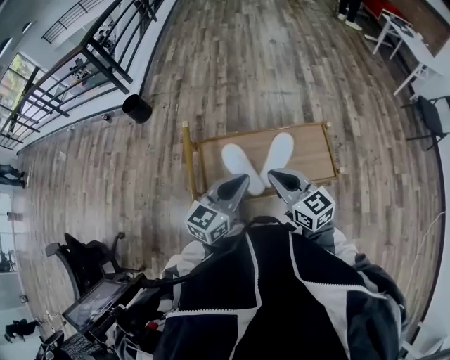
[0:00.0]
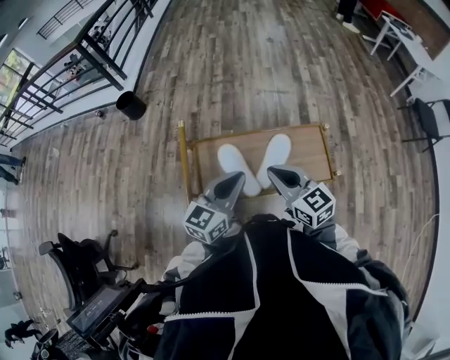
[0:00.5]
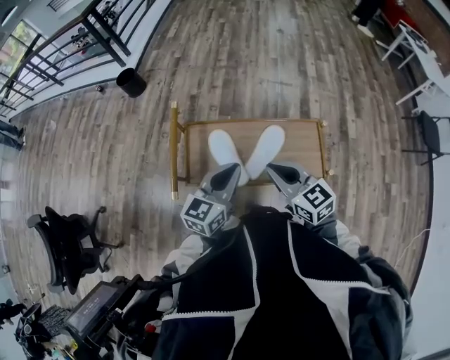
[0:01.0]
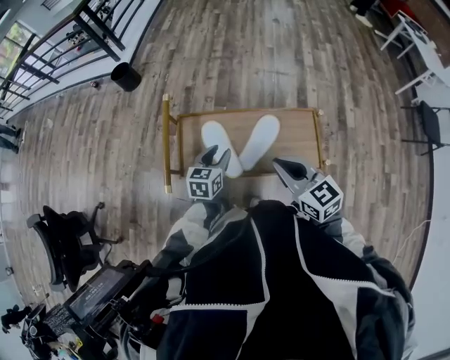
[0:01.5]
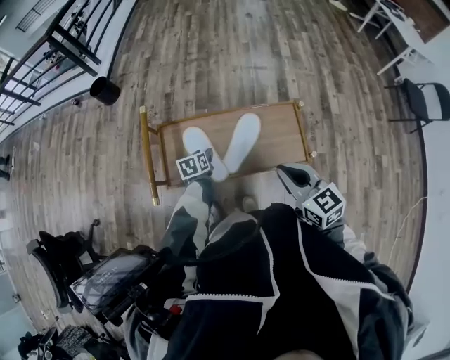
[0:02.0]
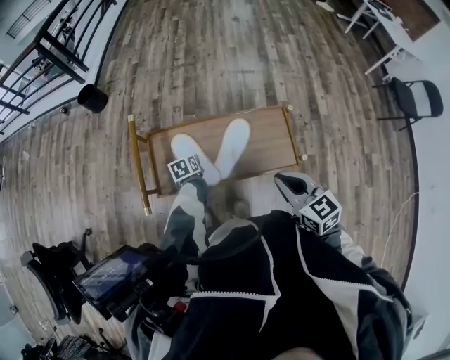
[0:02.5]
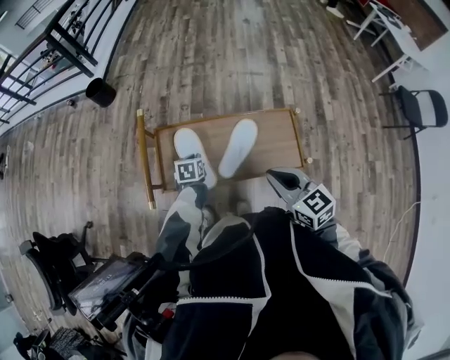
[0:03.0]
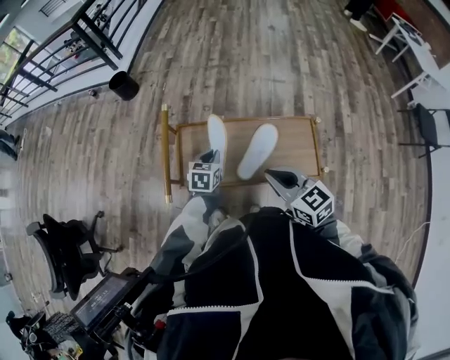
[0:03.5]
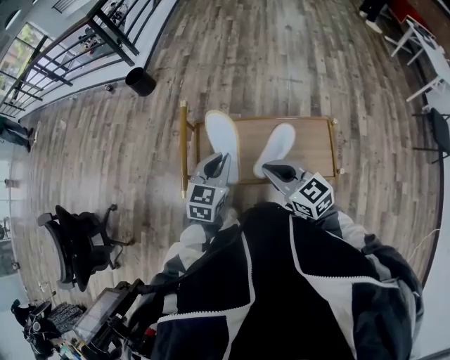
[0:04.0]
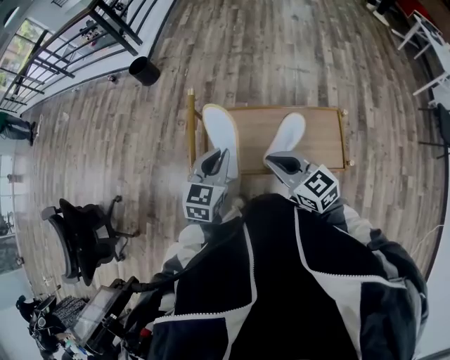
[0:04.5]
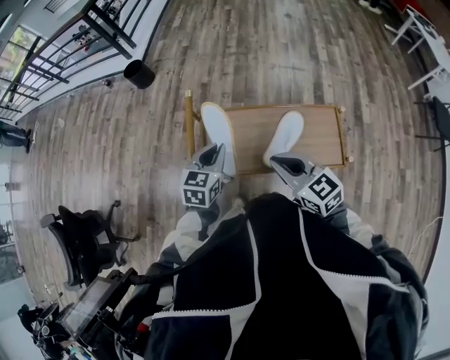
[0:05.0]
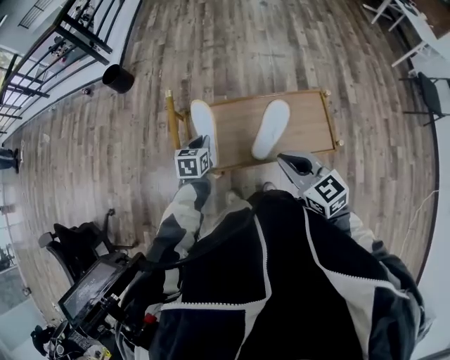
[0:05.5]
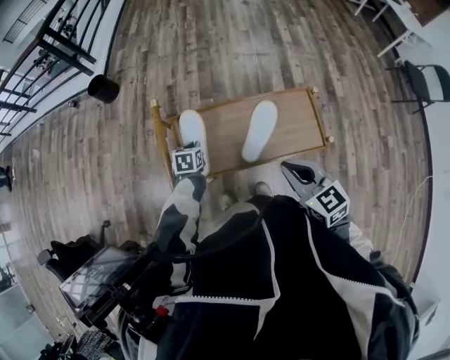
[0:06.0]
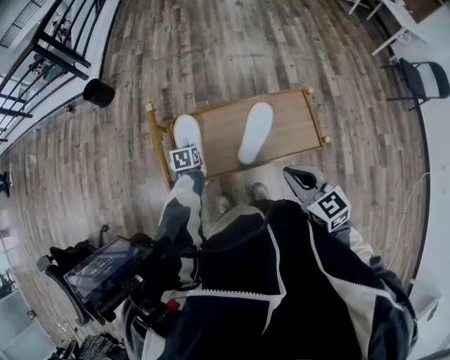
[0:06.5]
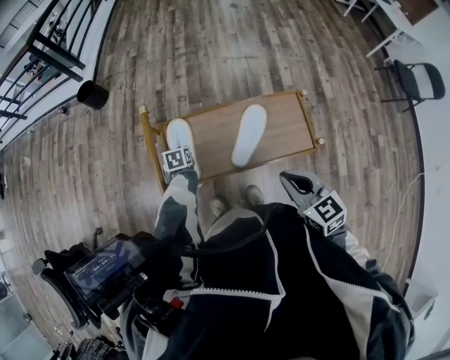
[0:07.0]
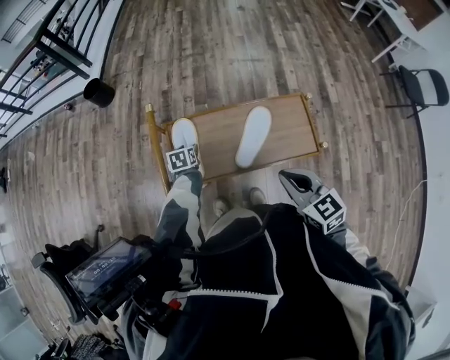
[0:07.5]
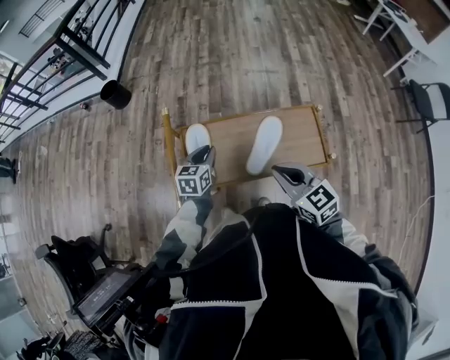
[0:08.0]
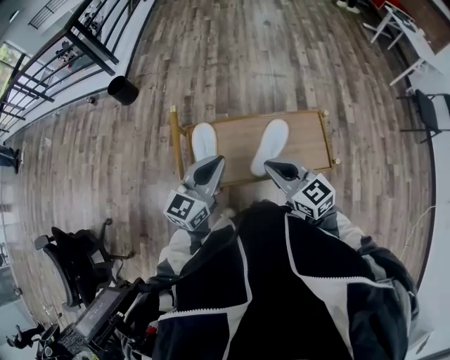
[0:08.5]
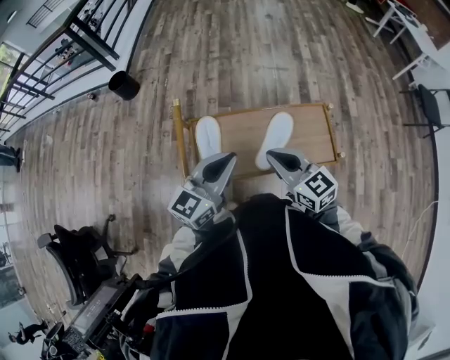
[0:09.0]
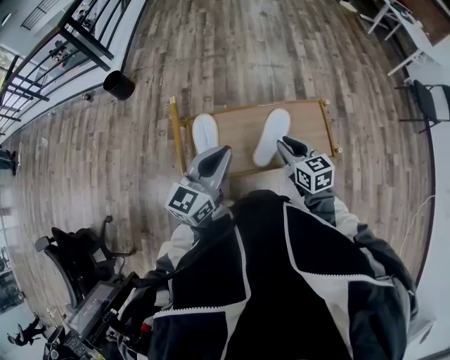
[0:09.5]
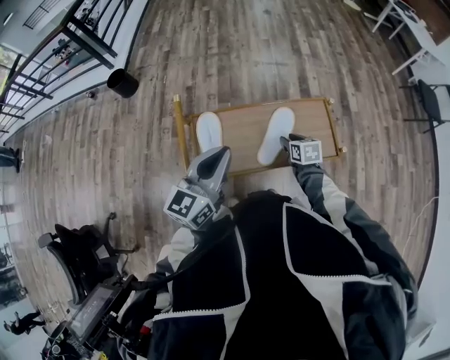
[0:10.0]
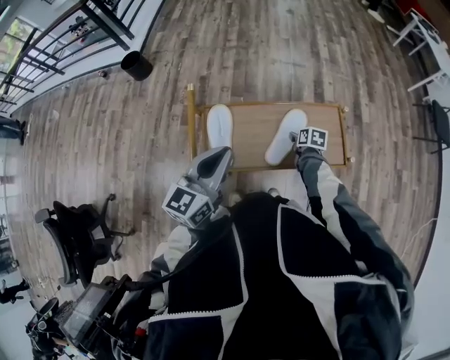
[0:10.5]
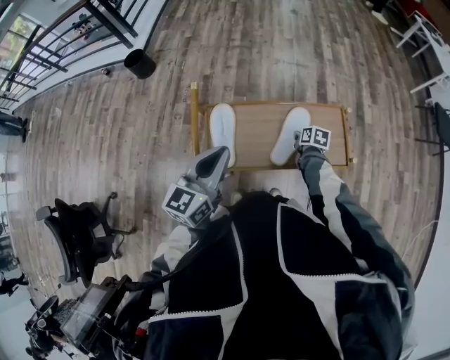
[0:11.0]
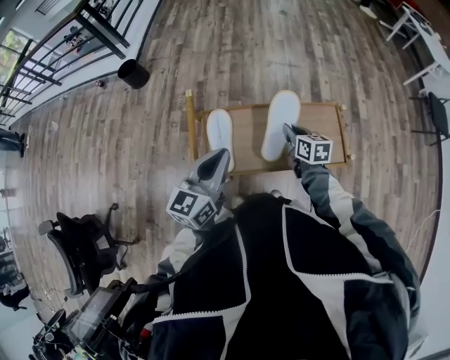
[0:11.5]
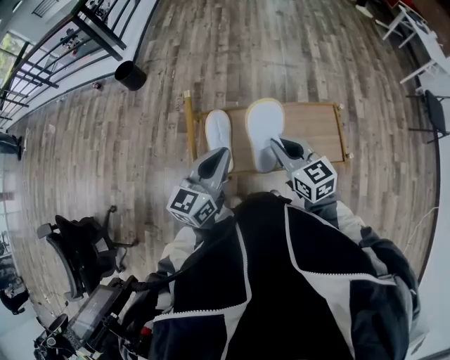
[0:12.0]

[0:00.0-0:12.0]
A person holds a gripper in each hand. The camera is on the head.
0:00.0 to 0:02.0: The right gripper travels to the right by about 15 cm. The left gripper is displaced downward by some 30 cm, tips its fingers downward by approximately 40 degrees, and opens its fingers.
0:02.0 to 0:04.0: The left gripper goes about 25 cm upward, rotates approximately 40 degrees, and closes its fingers. Meanwhile the right gripper shifts some 15 cm to the left.
0:04.0 to 0:06.0: The right gripper goes approximately 5 cm backward, and changes its angle by some 20 degrees; the left gripper is displaced downward by approximately 20 cm, and rotates approximately 30 degrees.
0:06.0 to 0:08.0: The left gripper moves upward, about 10 cm, rotates about 20 degrees, and opens, then closes again.
0:08.0 to 0:10.0: The left gripper travels upward and backward by approximately 20 cm, and tips its fingers upward by about 30 degrees, while the right gripper moves downward and forward, about 20 cm, rotates some 40 degrees, and opens.
0:10.0 to 0:12.0: The left gripper changes place by approximately 5 cm; the right gripper is displaced upward and to the left by approximately 25 cm, turns by about 40 degrees, and closes up.

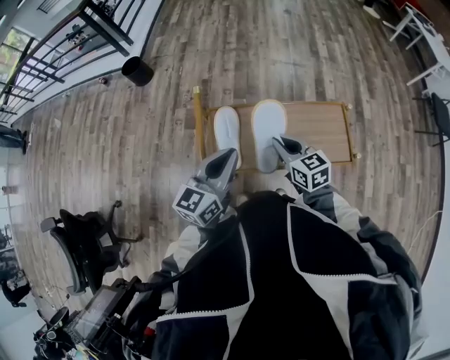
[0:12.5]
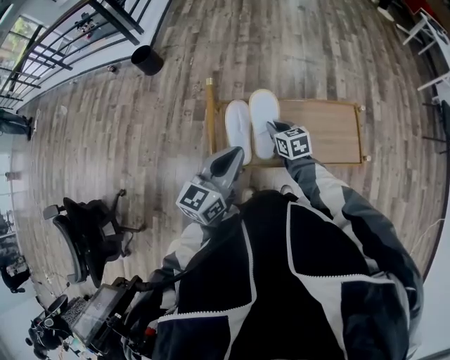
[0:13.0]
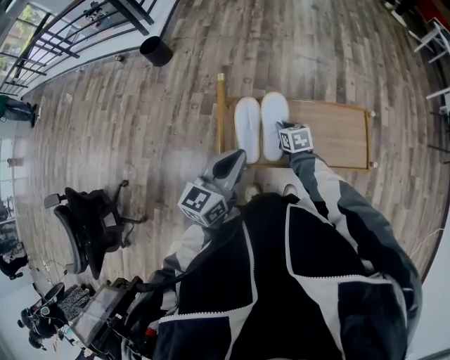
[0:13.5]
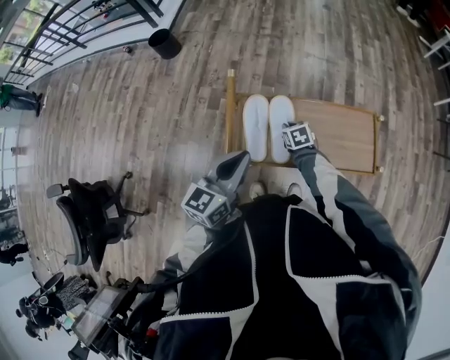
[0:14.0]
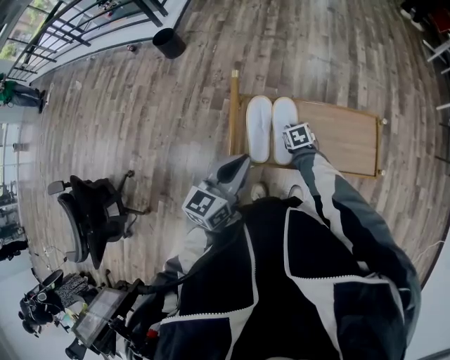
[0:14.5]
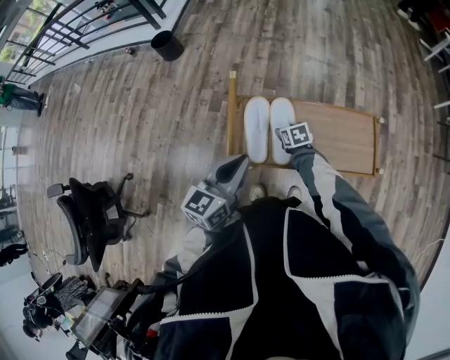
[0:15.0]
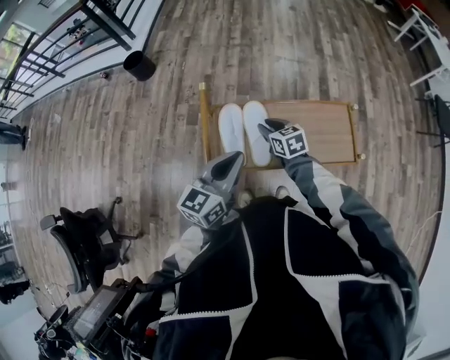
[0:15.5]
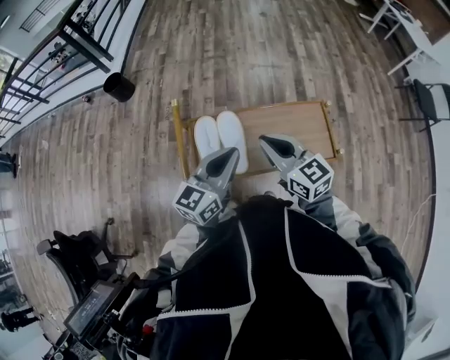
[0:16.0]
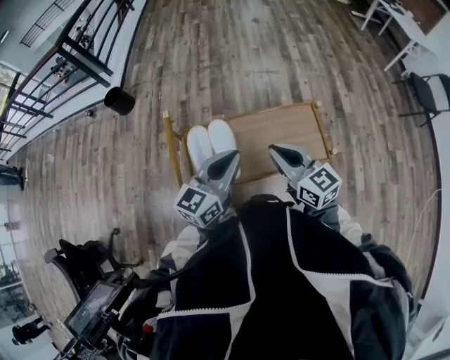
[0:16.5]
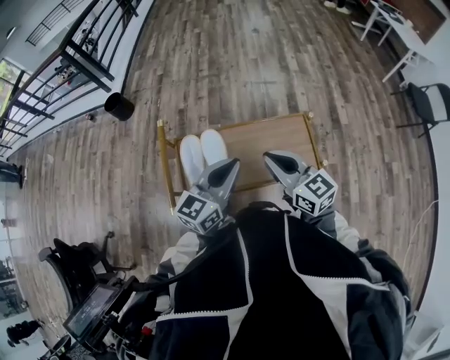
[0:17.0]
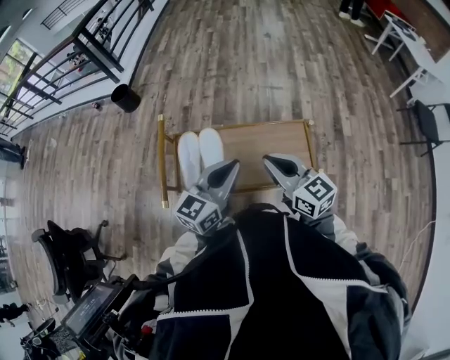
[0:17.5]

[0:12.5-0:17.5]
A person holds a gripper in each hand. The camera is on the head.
0:12.5 to 0:15.0: The right gripper shifts some 20 cm downward, tips its fingers downward by roughly 30 degrees, and opens. Meanwhile the left gripper travels to the left by some 5 cm.
0:15.0 to 0:17.5: The left gripper heads to the right, covering about 25 cm. The right gripper is displaced upward and to the right by about 40 cm, tips its fingers upward by about 50 degrees, and closes its fingers.

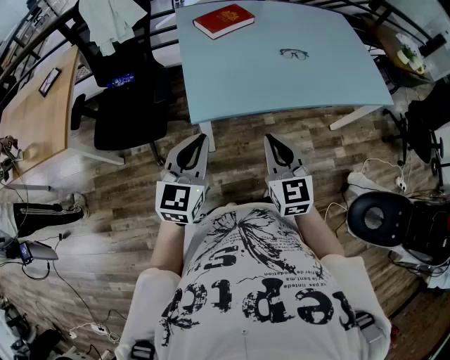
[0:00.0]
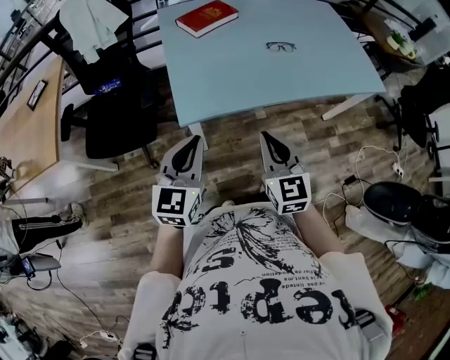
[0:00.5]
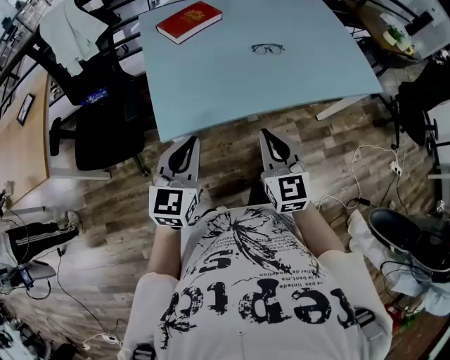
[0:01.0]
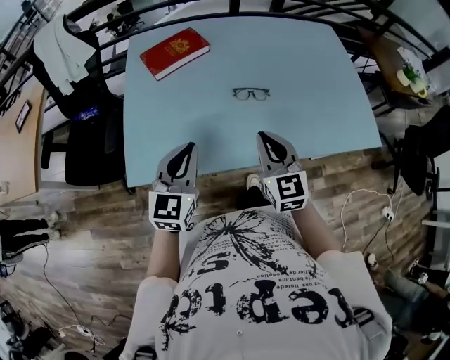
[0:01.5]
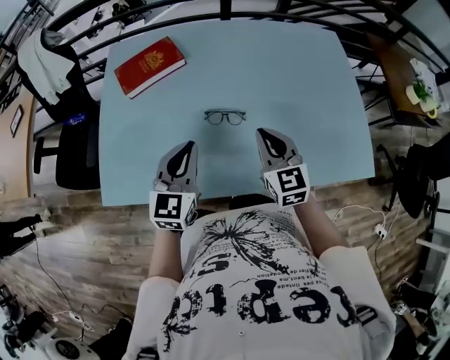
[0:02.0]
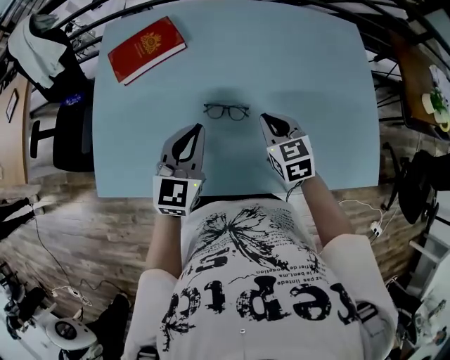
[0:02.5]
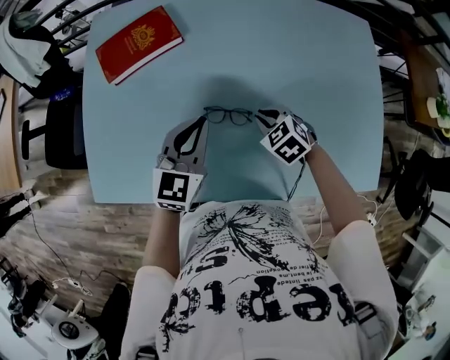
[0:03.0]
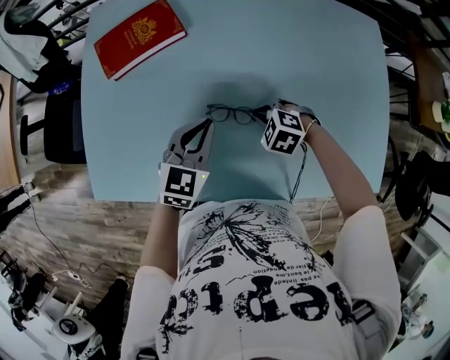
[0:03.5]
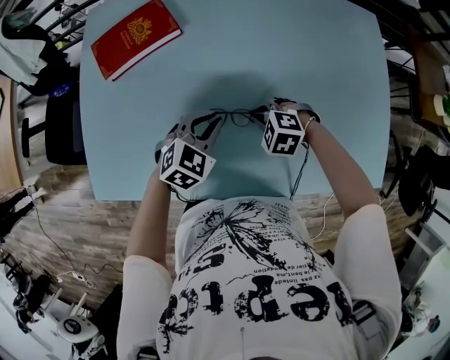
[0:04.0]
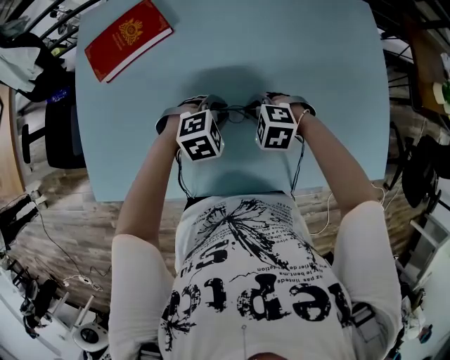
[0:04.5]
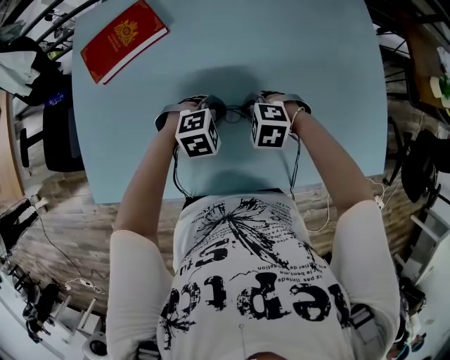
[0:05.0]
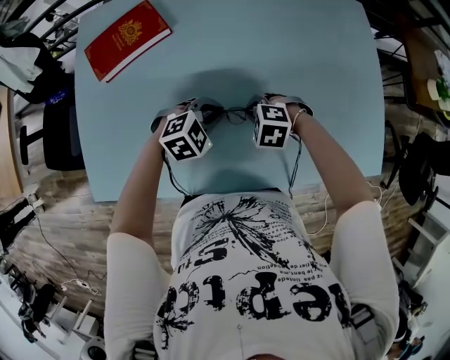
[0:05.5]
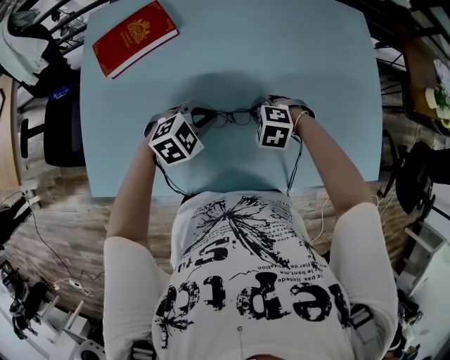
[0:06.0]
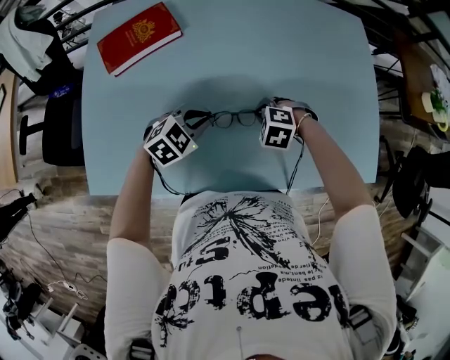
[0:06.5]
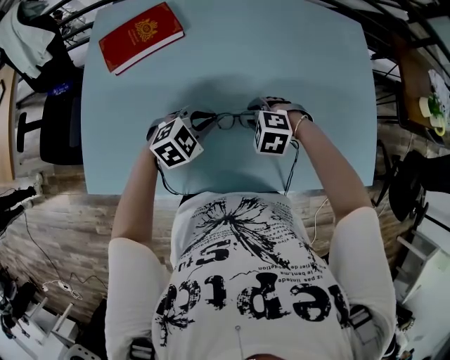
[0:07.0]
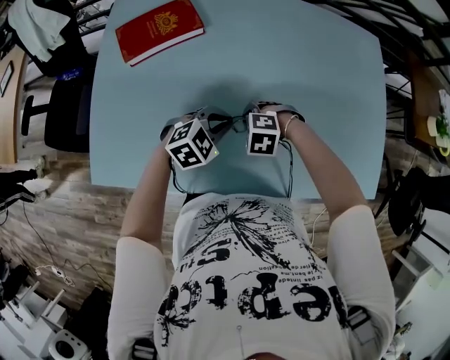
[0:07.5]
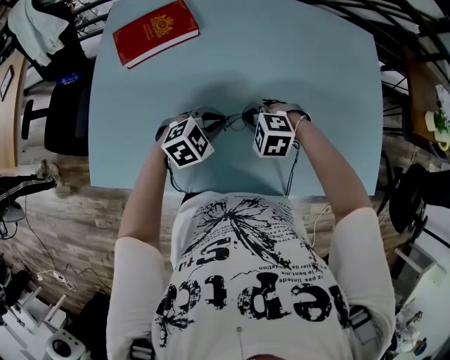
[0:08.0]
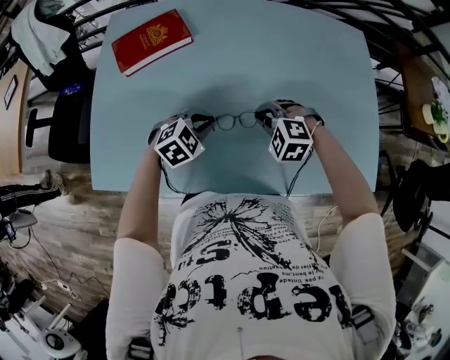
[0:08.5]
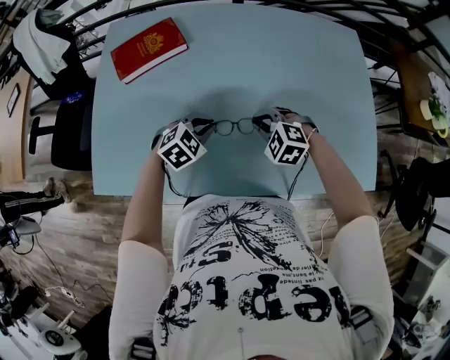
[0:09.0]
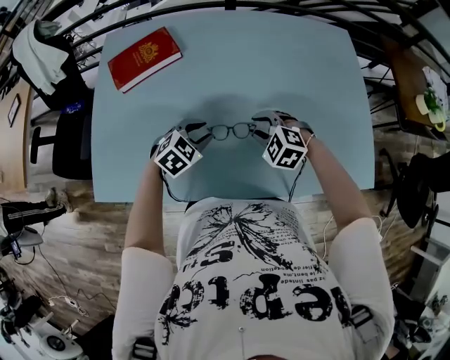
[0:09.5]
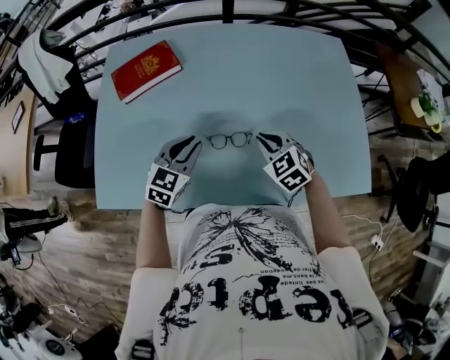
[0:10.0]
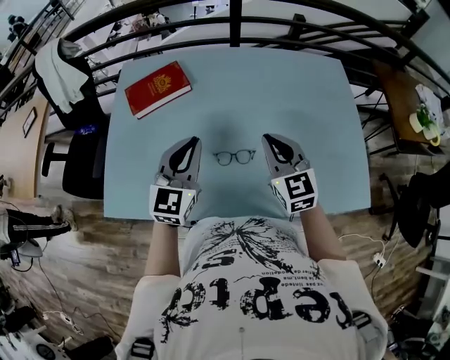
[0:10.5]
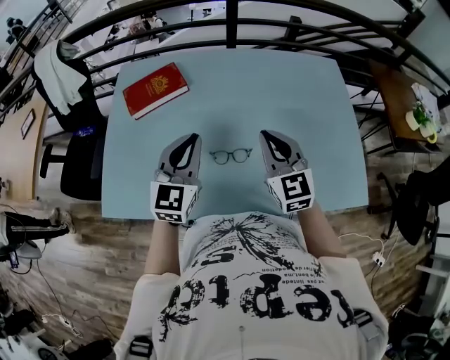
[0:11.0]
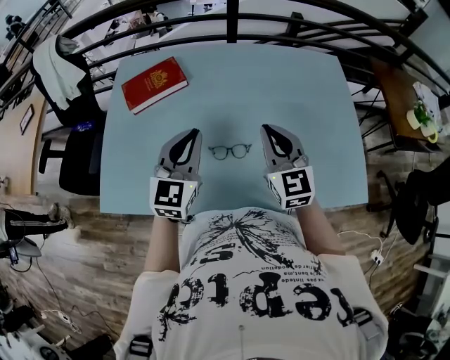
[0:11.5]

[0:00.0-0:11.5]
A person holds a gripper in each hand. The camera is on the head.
0:00.0 to 0:02.0: Both grippers are carried forward and to the right, about 50 cm.
0:02.0 to 0:04.0: The left gripper is displaced downward, forward and to the right by some 20 cm, and changes its angle by approximately 40 degrees. Meanwhile the right gripper travels downward and forward by about 20 cm, and points its fingers roughly 50 degrees further downward.
0:04.0 to 0:06.0: The left gripper changes its angle by some 20 degrees.
0:06.0 to 0:07.5: The right gripper changes place by about 5 cm, and opens, then closes once more.
0:07.5 to 0:09.5: The right gripper moves roughly 10 cm, swivels about 30 degrees, and opens, while the left gripper opens up.
0:09.5 to 0:11.5: The grippers both shift upward by about 20 cm. The right gripper tips its fingers upward by approximately 50 degrees, and closes up; the left gripper angles its fingers upward, by about 40 degrees, and closes up.
